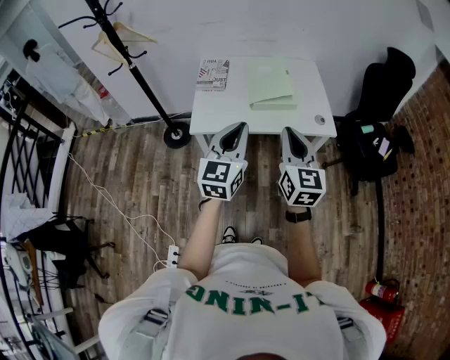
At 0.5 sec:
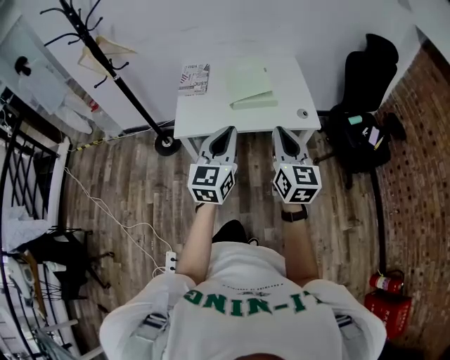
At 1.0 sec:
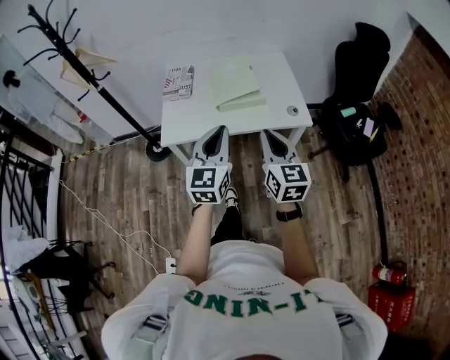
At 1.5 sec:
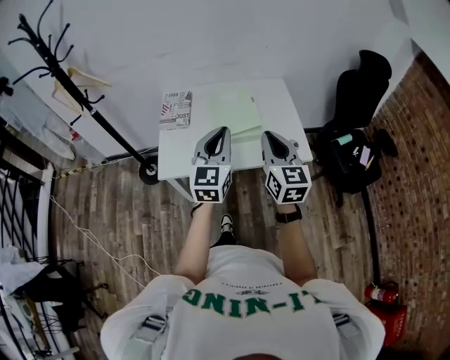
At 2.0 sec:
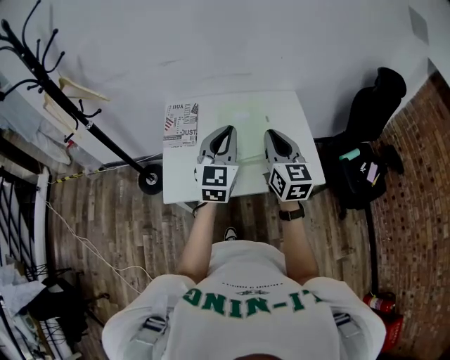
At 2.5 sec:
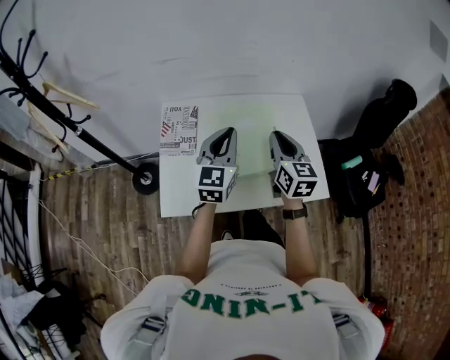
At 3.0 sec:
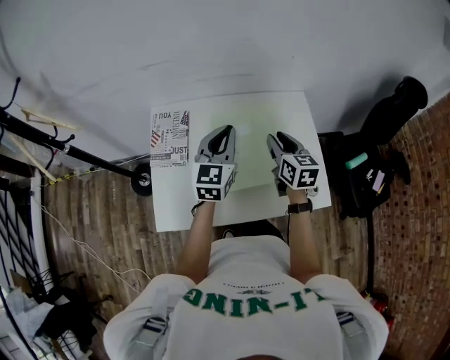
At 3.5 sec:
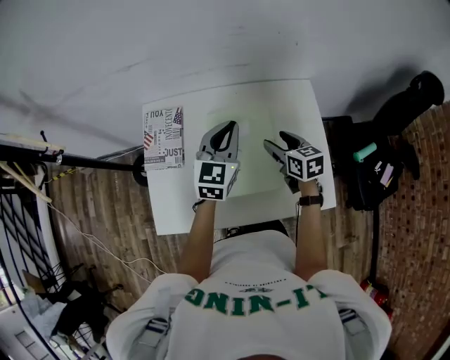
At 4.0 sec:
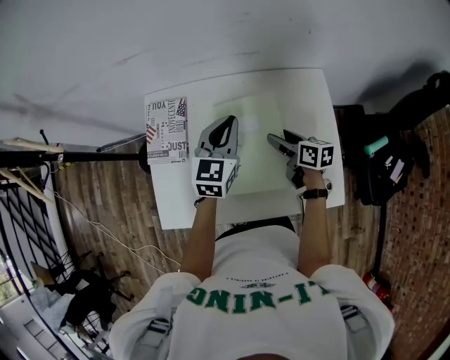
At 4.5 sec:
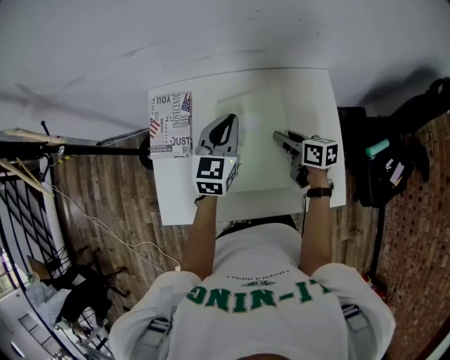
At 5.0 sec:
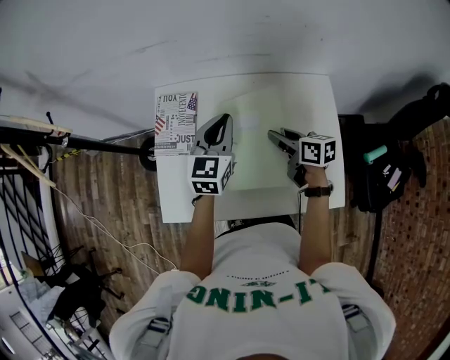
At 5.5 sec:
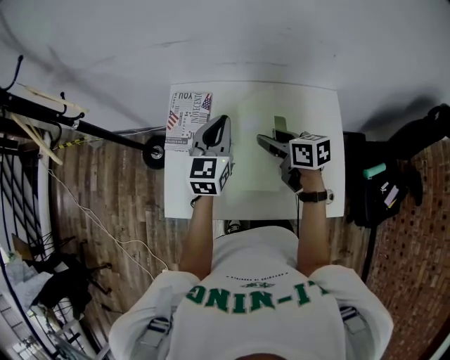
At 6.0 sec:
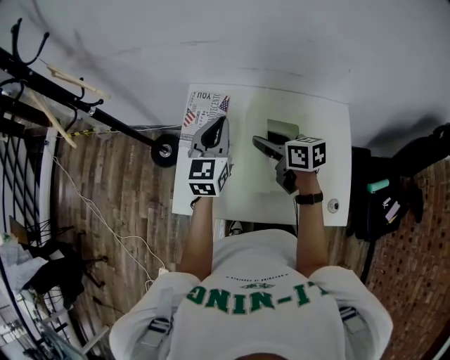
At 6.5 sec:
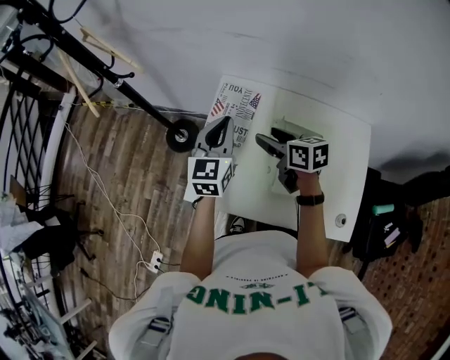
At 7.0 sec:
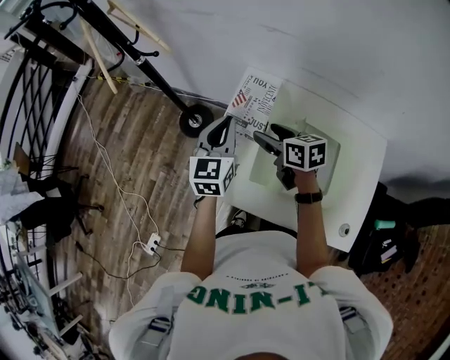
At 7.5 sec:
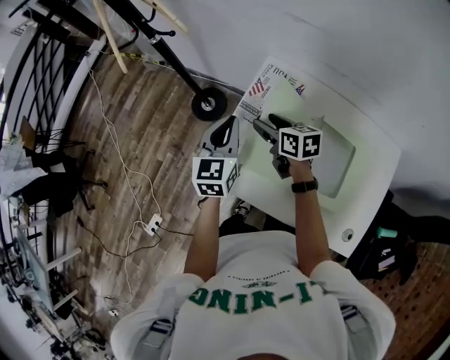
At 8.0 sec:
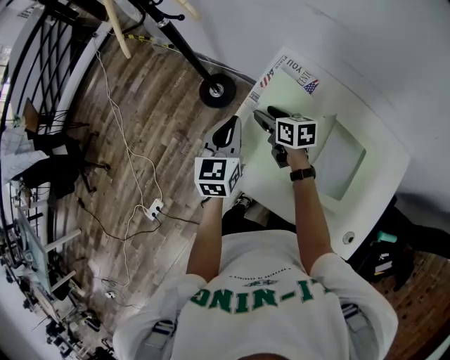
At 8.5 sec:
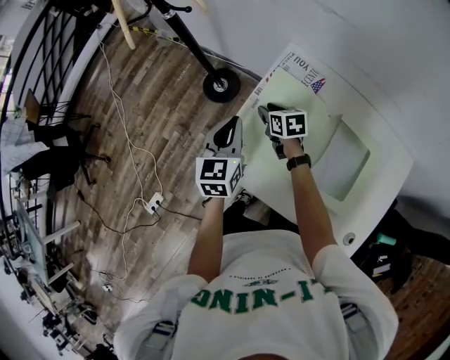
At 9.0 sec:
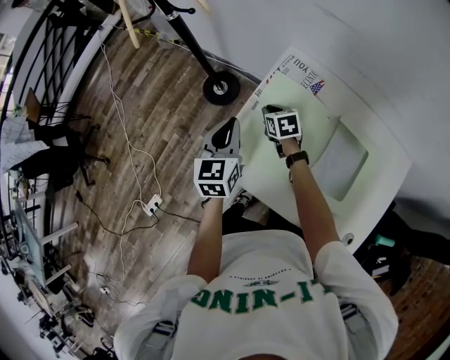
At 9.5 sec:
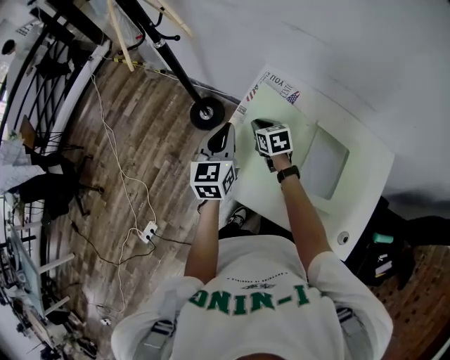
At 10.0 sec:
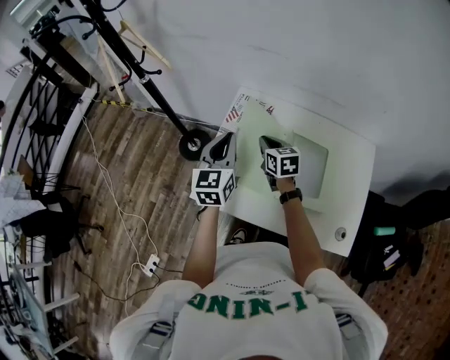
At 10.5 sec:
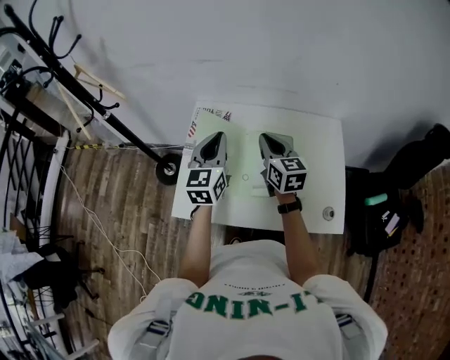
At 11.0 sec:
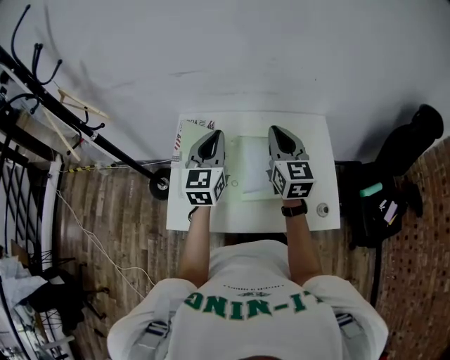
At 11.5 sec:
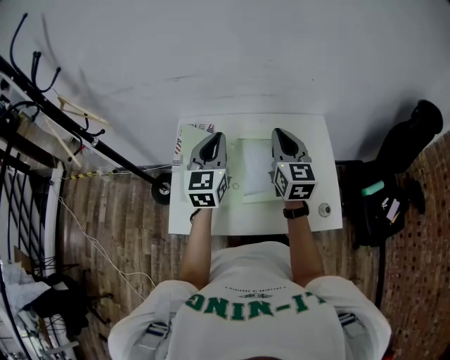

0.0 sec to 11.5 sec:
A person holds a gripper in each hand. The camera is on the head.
0.0 sec to 2.0 sec: The grippers both shift forward by some 30 cm.
2.0 sec to 4.0 sec: The right gripper moves downward and forward, approximately 40 cm, turns by roughly 50 degrees, and opens, while the left gripper shifts some 35 cm forward and downward.
4.0 sec to 6.0 sec: The right gripper heads to the left and upward, covering approximately 25 cm, and swivels approximately 20 degrees; the left gripper travels to the left by roughly 20 cm.
6.0 sec to 7.5 sec: The right gripper heads to the left, forward and downward, covering some 20 cm, while the left gripper moves to the left, about 20 cm, and swivels approximately 20 degrees.
7.5 sec to 9.5 sec: The right gripper travels downward by approximately 5 cm, turns by about 20 degrees, and closes.
9.5 sec to 11.5 sec: The right gripper moves about 40 cm, and tilts its fingers approximately 40 degrees upward. The left gripper ends up about 25 cm from where it was, and turns by approximately 30 degrees.

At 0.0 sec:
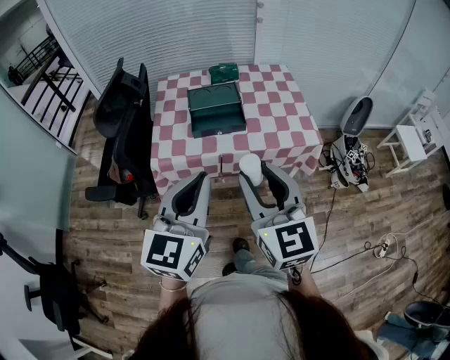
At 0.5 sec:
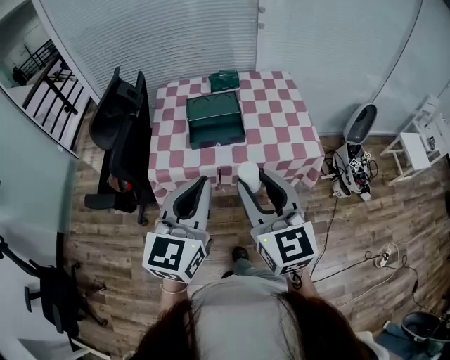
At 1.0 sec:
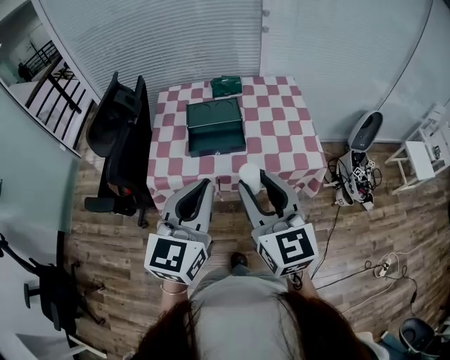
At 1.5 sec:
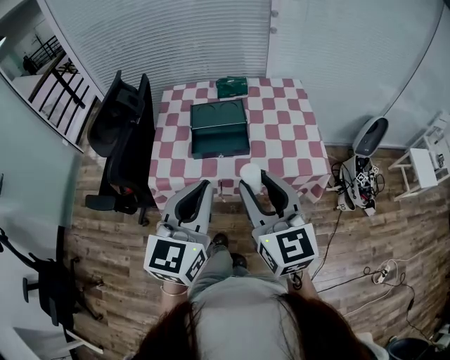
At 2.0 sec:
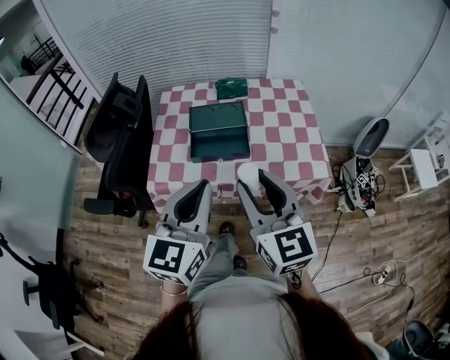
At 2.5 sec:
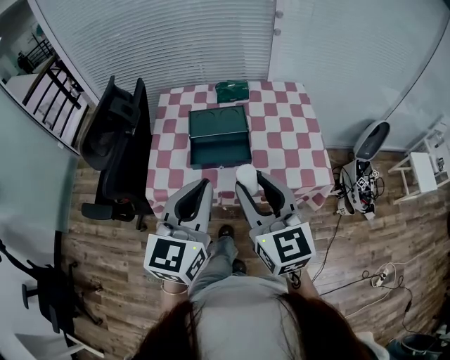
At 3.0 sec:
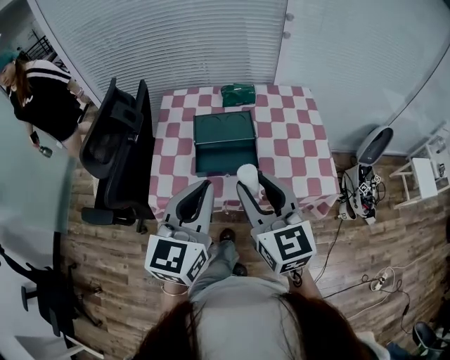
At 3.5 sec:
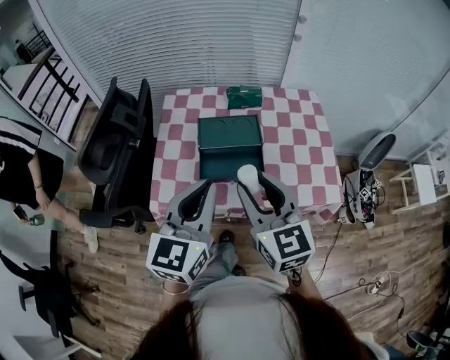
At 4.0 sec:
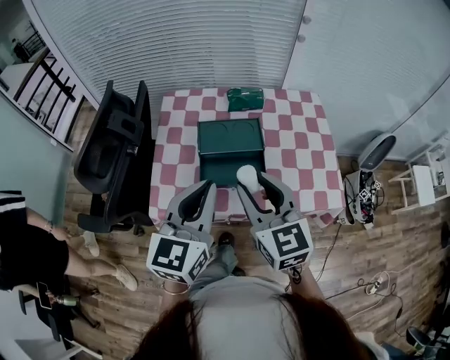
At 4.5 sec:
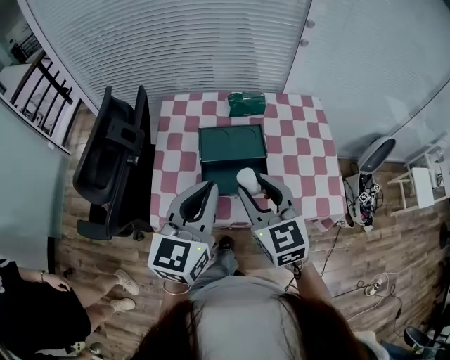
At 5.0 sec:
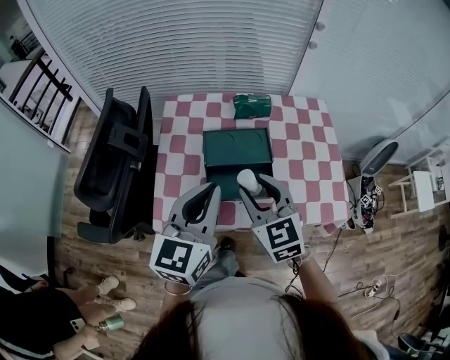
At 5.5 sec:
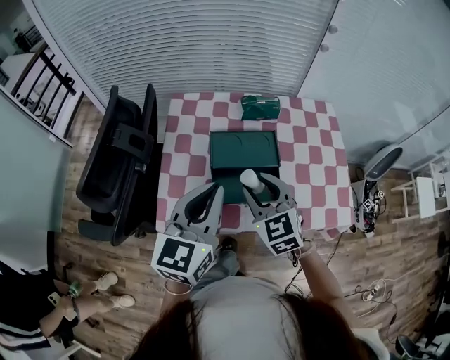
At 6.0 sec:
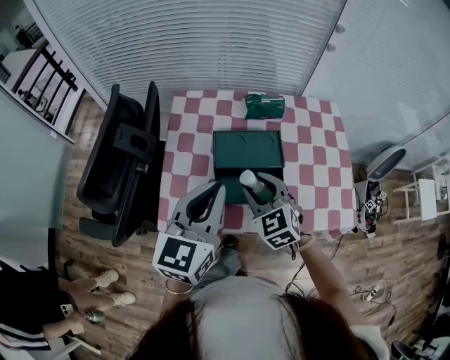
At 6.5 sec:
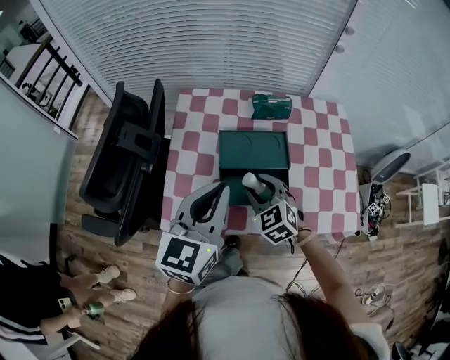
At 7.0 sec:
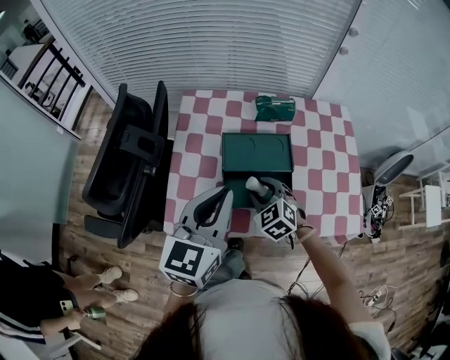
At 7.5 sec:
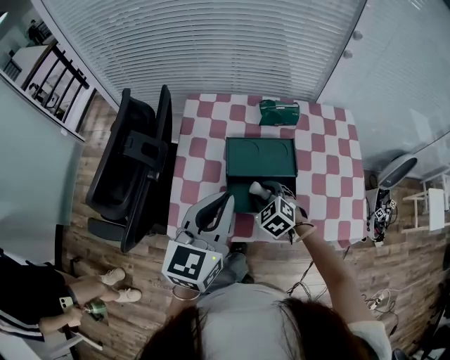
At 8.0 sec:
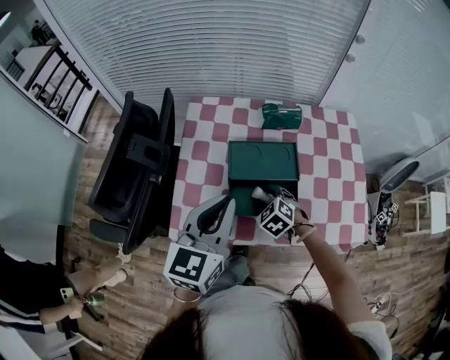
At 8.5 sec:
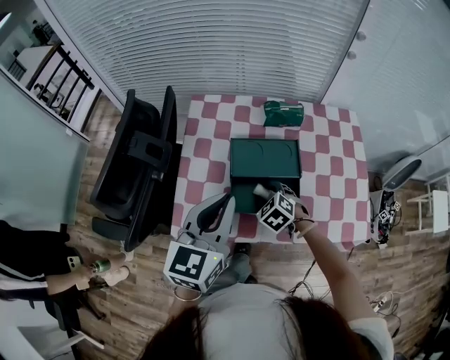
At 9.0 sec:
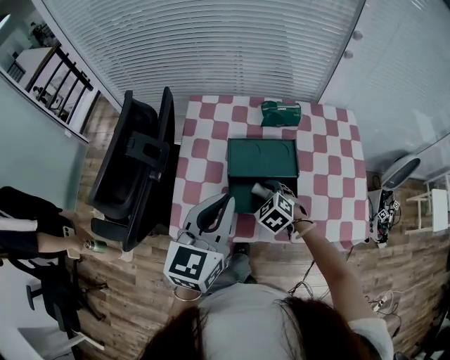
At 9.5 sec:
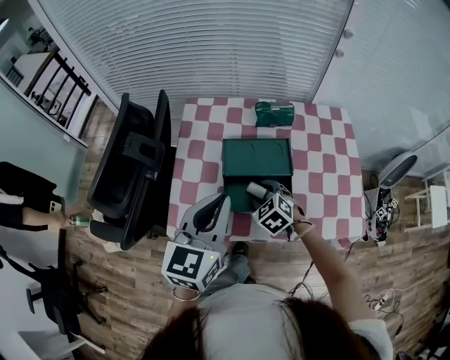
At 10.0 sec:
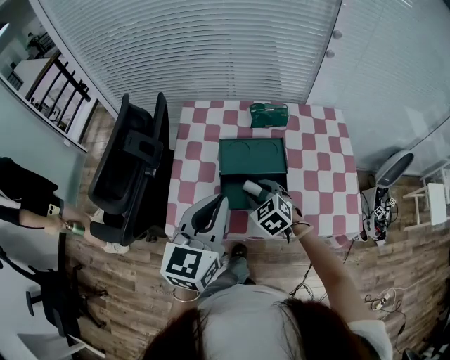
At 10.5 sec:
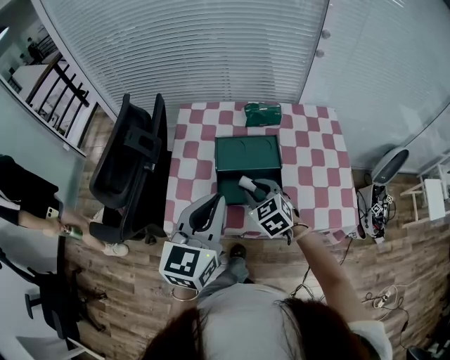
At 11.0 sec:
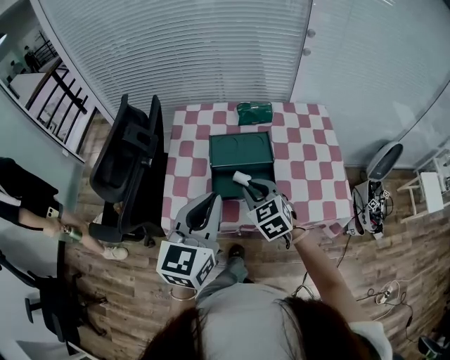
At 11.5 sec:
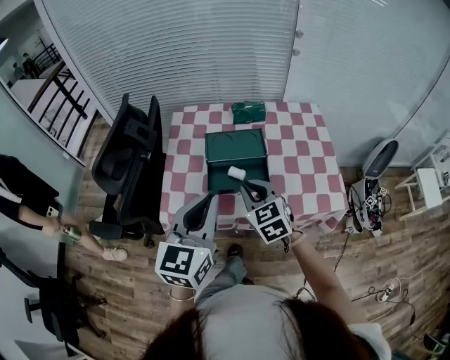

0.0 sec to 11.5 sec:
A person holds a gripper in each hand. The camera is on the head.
0.0 sec to 2.0 sec: Both grippers move forward, about 15 cm.
2.0 sec to 4.0 sec: The two grippers go approximately 15 cm forward.
4.0 sec to 6.0 sec: The right gripper travels downward and forward by approximately 20 cm, and changes its angle by approximately 30 degrees; the left gripper heads forward, covering roughly 10 cm.
6.0 sec to 7.5 sec: The right gripper shifts some 15 cm downward, and turns by roughly 20 degrees.
7.5 sec to 9.5 sec: The grippers stay close to where they were, moving slightly.
9.5 sec to 11.5 sec: The left gripper travels backward by some 10 cm. The right gripper heads upward and backward, covering roughly 20 cm, swivels about 30 degrees, and closes its fingers.

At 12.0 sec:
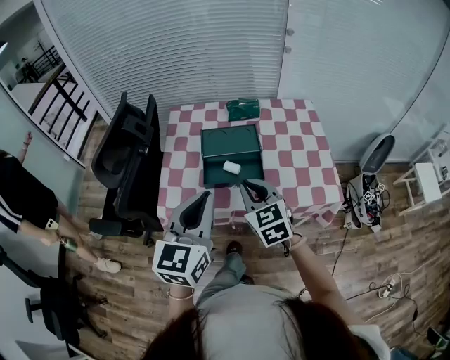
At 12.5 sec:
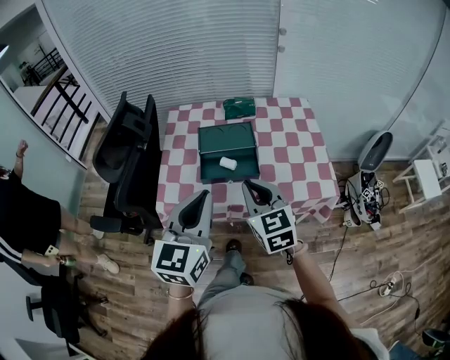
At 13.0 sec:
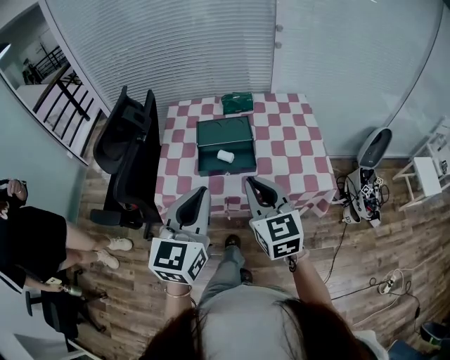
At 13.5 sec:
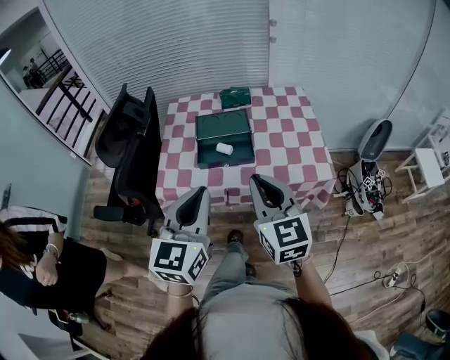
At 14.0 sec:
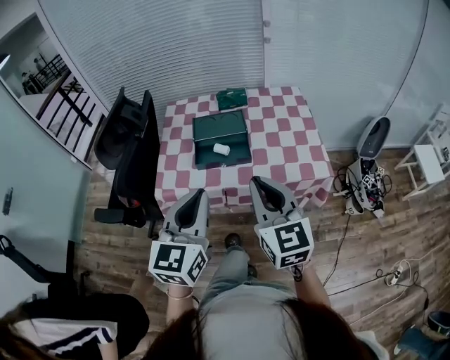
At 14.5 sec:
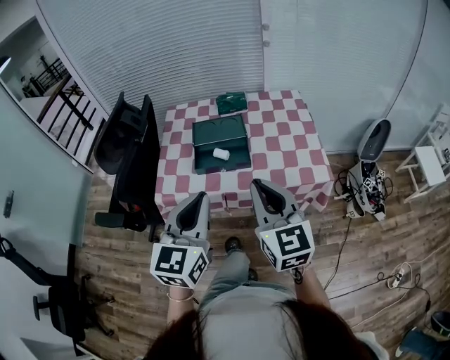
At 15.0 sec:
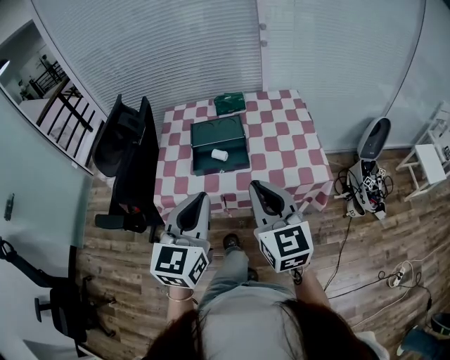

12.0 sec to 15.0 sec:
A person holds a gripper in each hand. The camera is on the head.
12.0 sec to 13.5 sec: The left gripper heads backward, covering approximately 10 cm. The right gripper goes some 20 cm backward, upward and to the right, and swivels roughly 20 degrees.
13.5 sec to 15.0 sec: The grippers move only a little.
